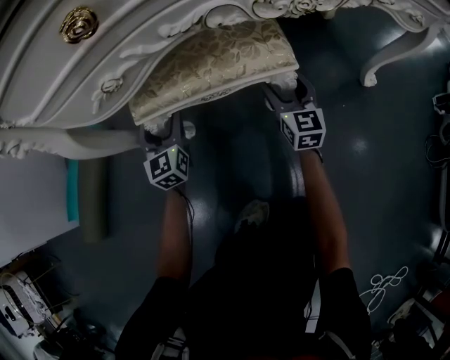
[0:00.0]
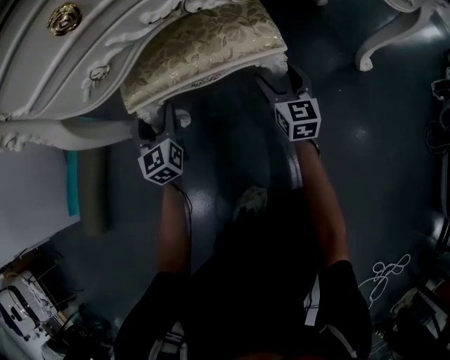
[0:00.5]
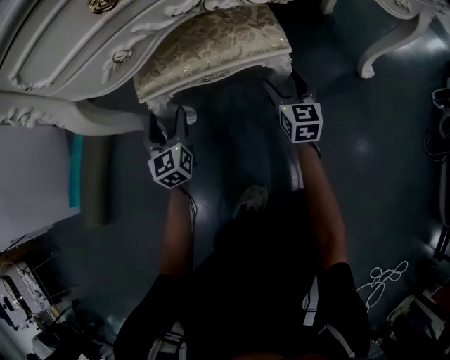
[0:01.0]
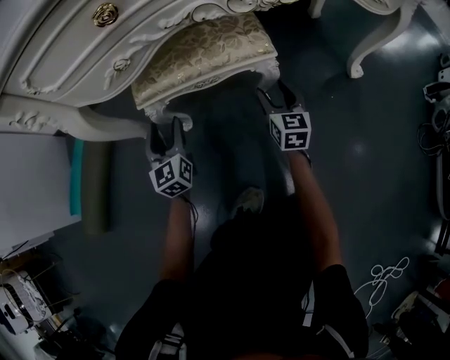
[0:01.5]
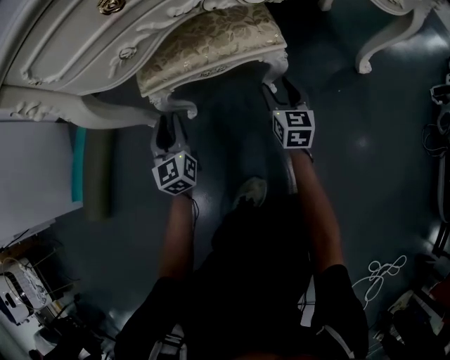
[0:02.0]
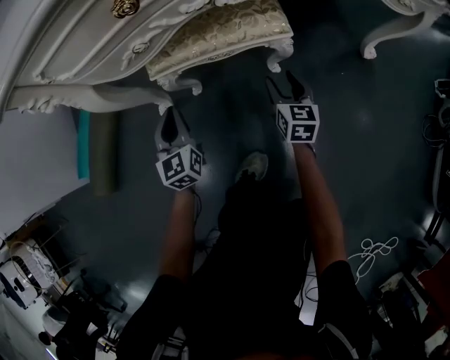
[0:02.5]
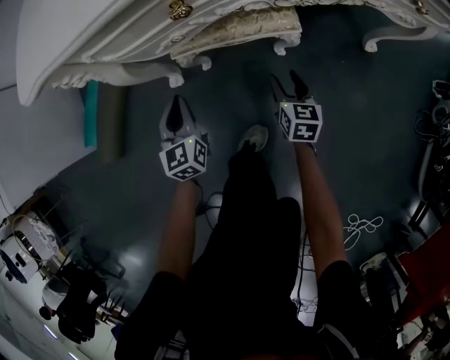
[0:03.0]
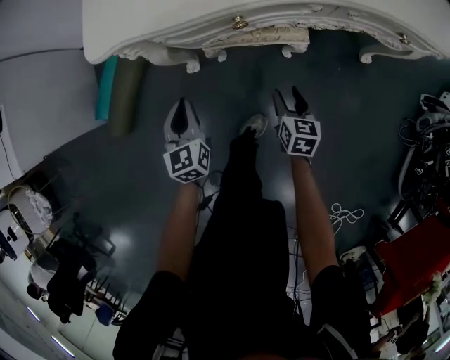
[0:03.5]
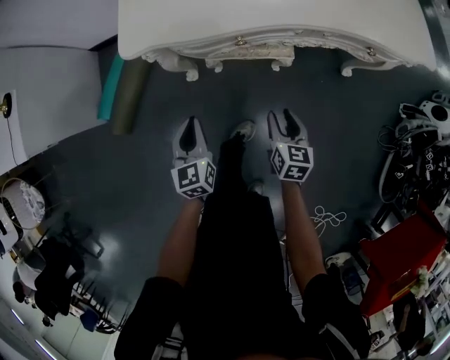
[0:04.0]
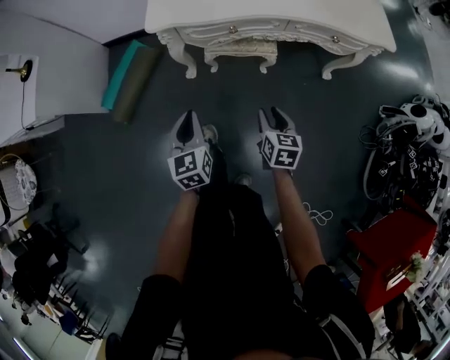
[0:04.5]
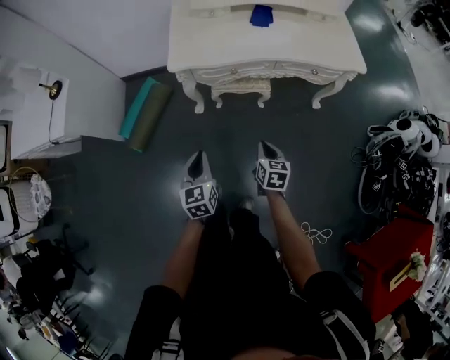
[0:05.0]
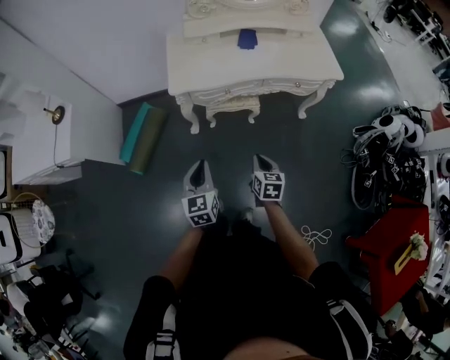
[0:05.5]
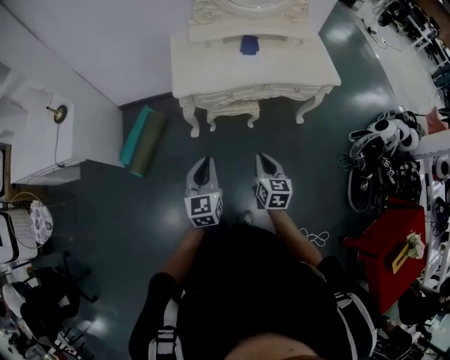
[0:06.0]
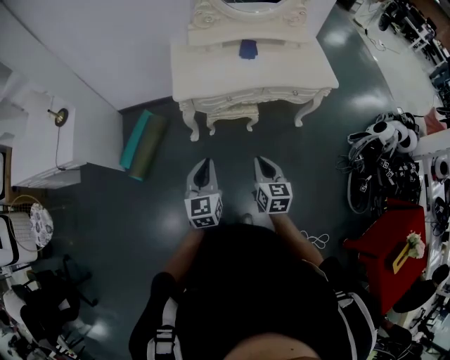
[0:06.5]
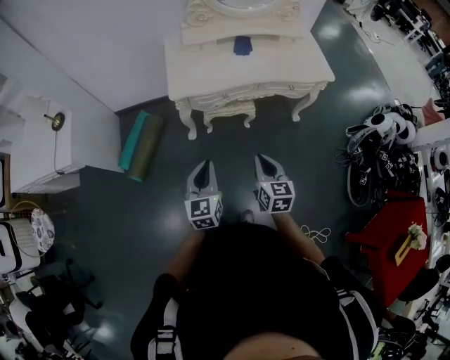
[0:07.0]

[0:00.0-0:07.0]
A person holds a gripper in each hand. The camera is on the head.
0:00.0 to 0:02.0: The two grippers go about 10 cm backward. The left gripper closes its fingers.
0:02.0 to 0:03.5: The left gripper travels upward and backward by about 25 cm; the right gripper is displaced upward, backward and to the left by approximately 25 cm, and rotates some 20 degrees.
0:03.5 to 0:05.0: The two grippers go about 40 cm upward and backward. The right gripper closes its fingers.
0:05.0 to 0:07.0: The two grippers go some 15 cm upward.

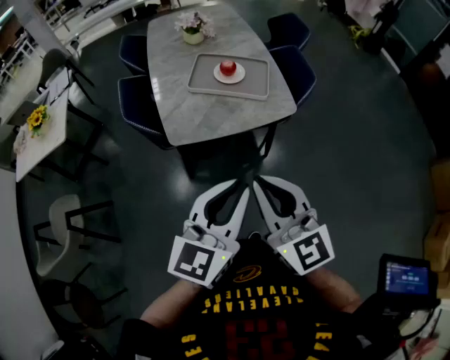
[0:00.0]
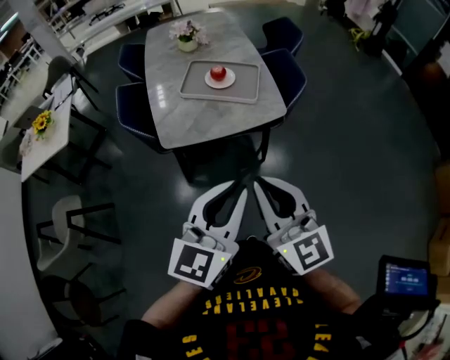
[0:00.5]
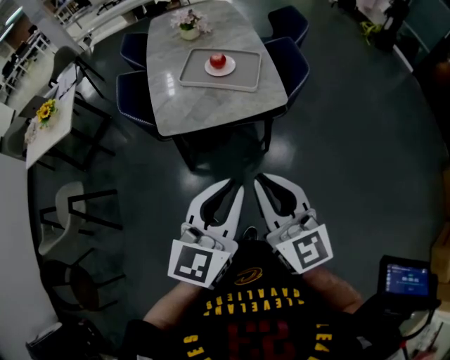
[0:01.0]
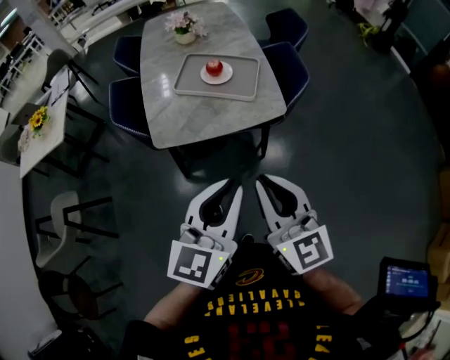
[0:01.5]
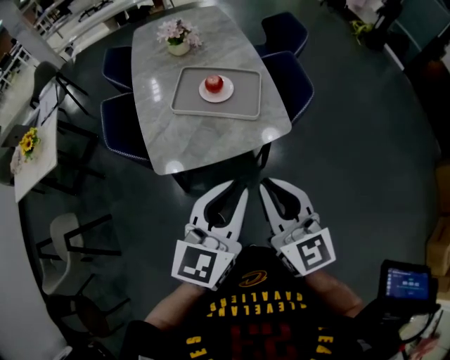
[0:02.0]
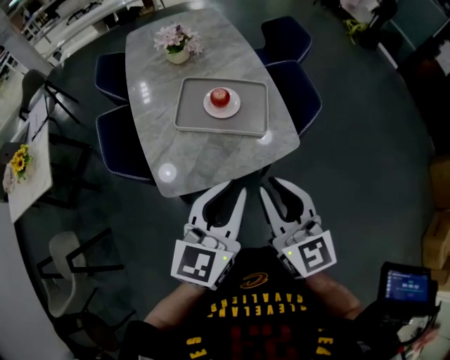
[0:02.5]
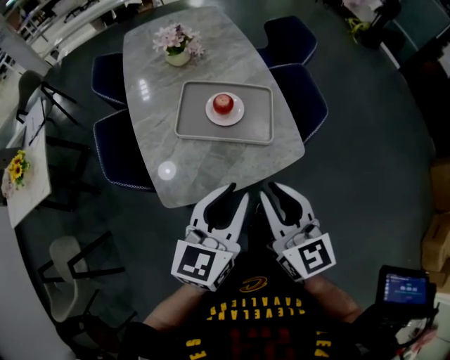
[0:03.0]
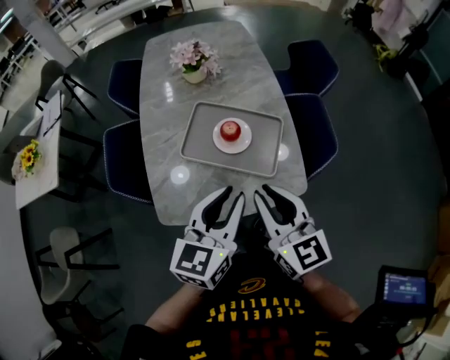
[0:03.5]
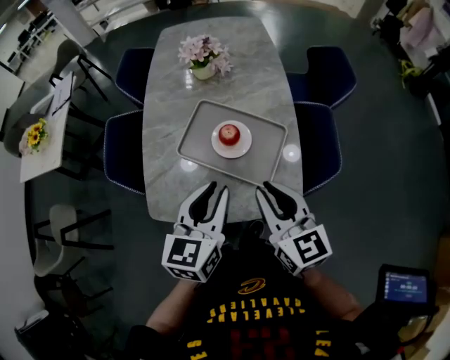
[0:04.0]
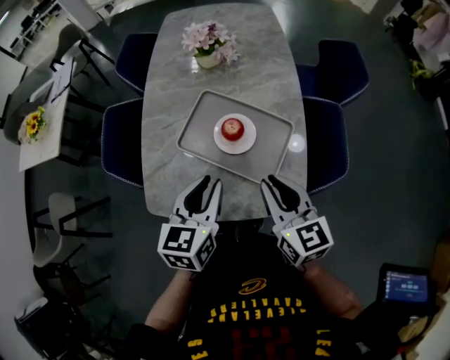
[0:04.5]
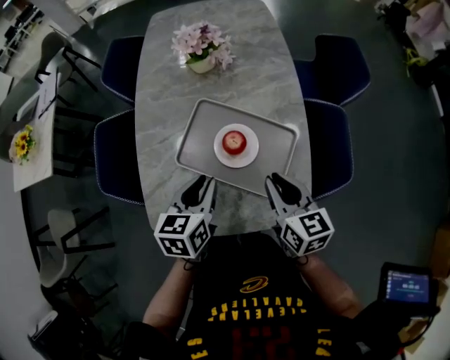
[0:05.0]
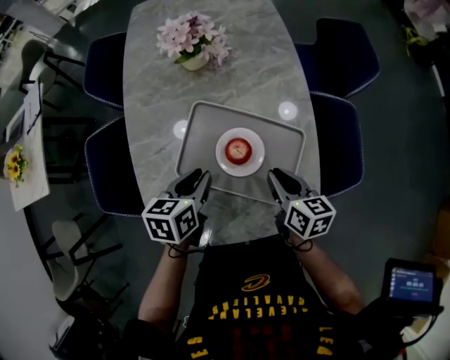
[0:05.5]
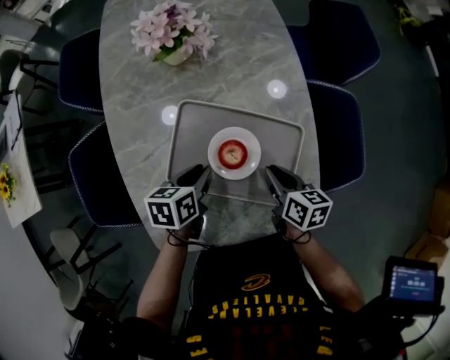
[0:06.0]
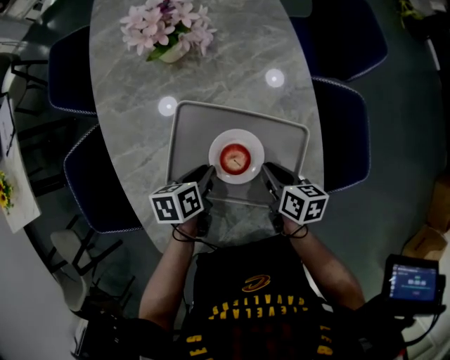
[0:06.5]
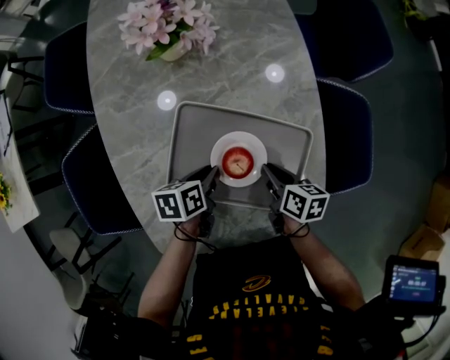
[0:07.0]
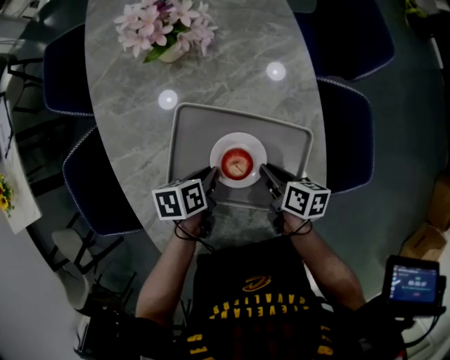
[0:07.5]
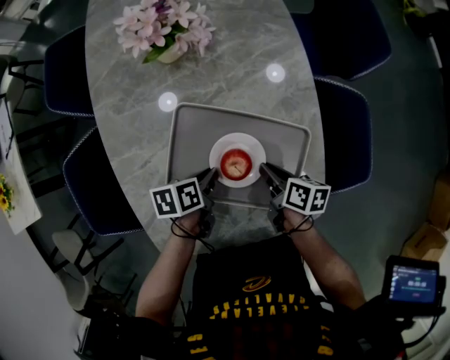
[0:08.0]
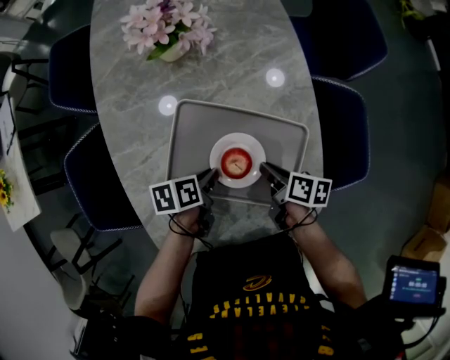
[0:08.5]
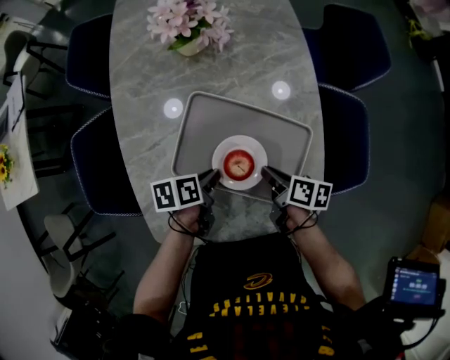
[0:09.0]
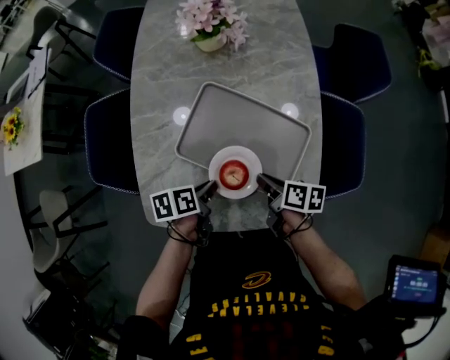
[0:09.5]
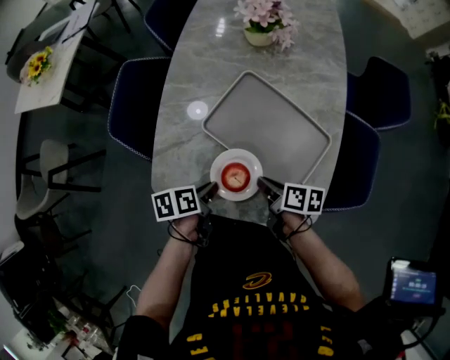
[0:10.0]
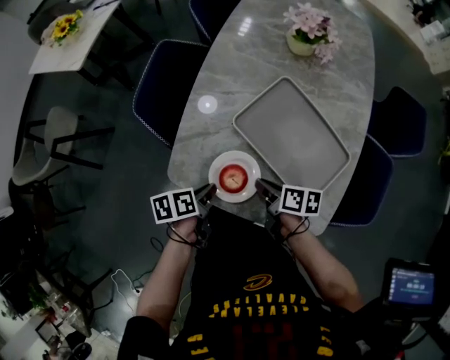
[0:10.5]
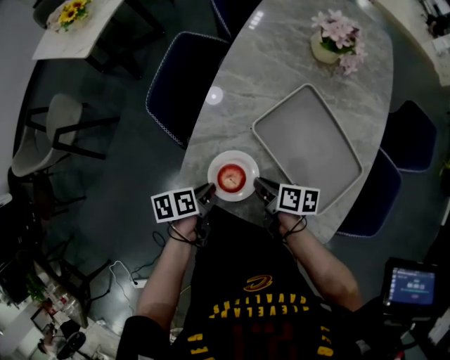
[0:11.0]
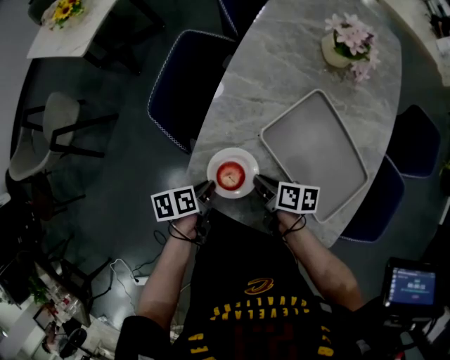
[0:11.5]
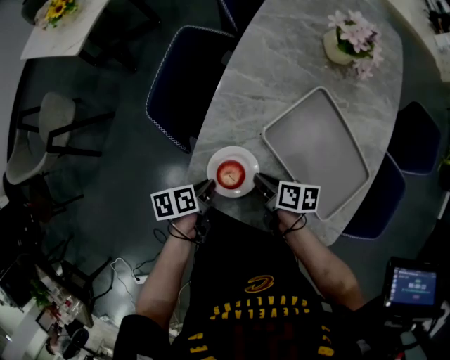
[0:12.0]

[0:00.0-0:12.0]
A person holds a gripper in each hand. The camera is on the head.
0:00.0 to 0:02.0: Both grippers travel together forward and to the right, some 15 cm.
0:02.0 to 0:04.0: The two grippers go roughly 30 cm forward. The left gripper turns by about 20 degrees.
0:04.0 to 0:06.0: Both grippers travel together downward and forward, roughly 30 cm. The left gripper points its fingers some 30 degrees further downward, while the right gripper turns by approximately 50 degrees.
0:06.0 to 0:08.0: Both grippers move downward, about 5 cm. The left gripper rotates roughly 20 degrees.
0:08.0 to 0:10.0: The left gripper shifts by approximately 20 cm, and turns by approximately 30 degrees. The right gripper shifts by approximately 15 cm, and rotates approximately 30 degrees.
0:10.0 to 0:12.0: The left gripper goes about 15 cm to the left and downward; the right gripper shifts roughly 20 cm to the left and forward.

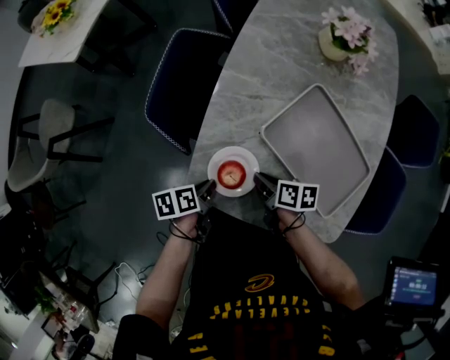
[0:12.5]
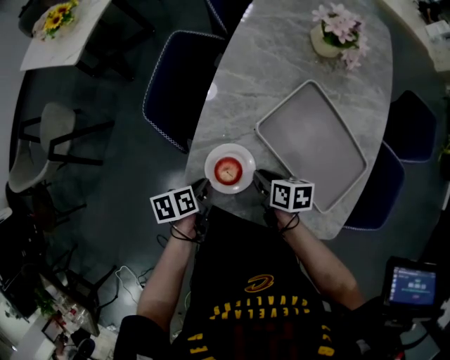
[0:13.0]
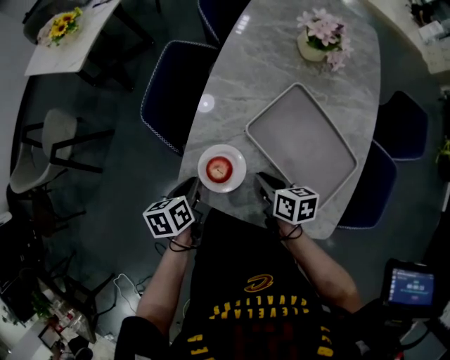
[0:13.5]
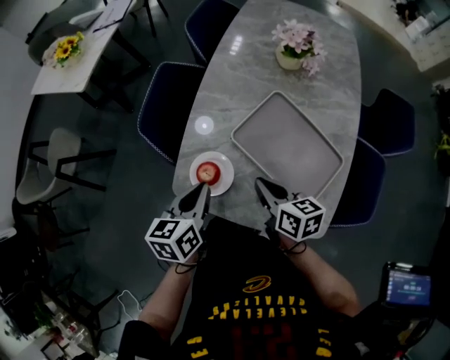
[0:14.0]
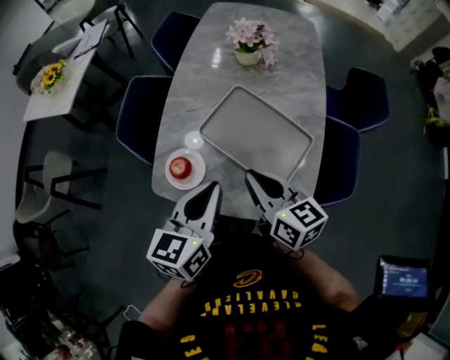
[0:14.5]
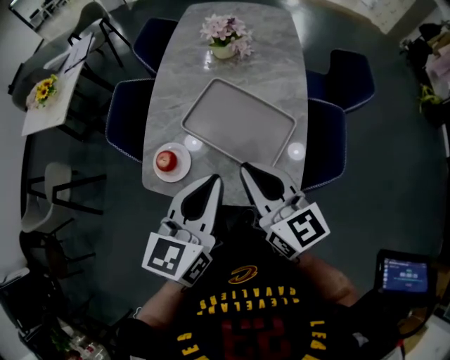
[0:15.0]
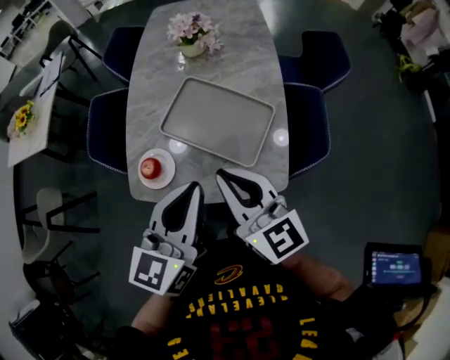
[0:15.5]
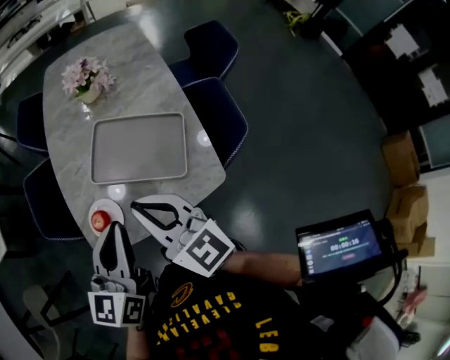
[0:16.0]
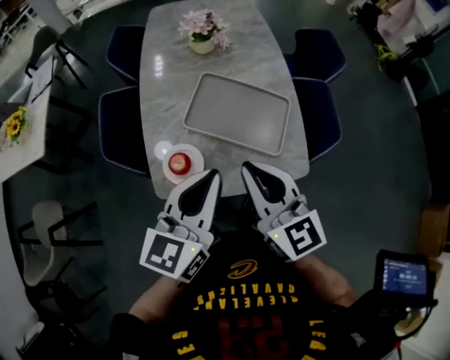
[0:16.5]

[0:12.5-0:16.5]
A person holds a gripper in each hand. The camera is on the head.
0:12.5 to 0:14.5: The right gripper is displaced upward by some 30 cm, and tilts its fingers roughly 30 degrees upward, while the left gripper goes about 35 cm upward and to the right, and angles its fingers upward, by about 30 degrees.
0:14.5 to 0:16.5: The right gripper shifts approximately 15 cm upward and backward, and swivels about 30 degrees; the left gripper moves upward, some 5 cm, reaches some 5 cm to the right, then returns, and changes its angle by approximately 30 degrees.

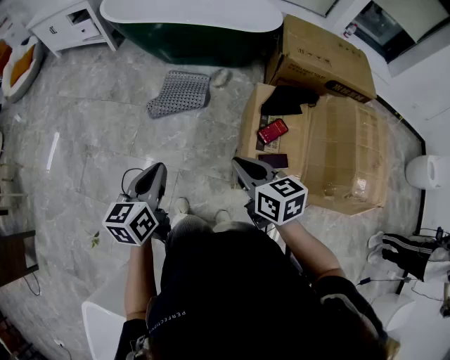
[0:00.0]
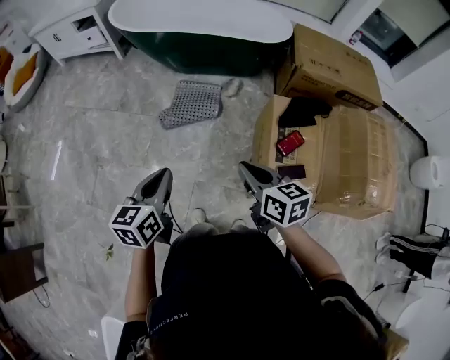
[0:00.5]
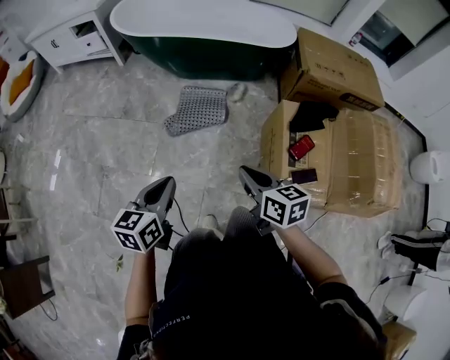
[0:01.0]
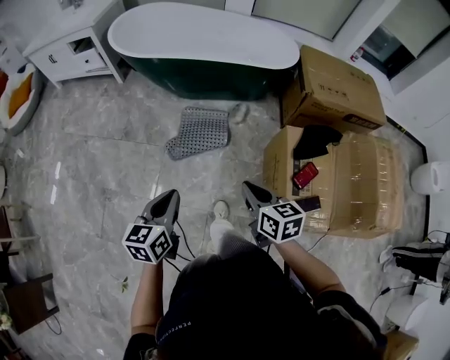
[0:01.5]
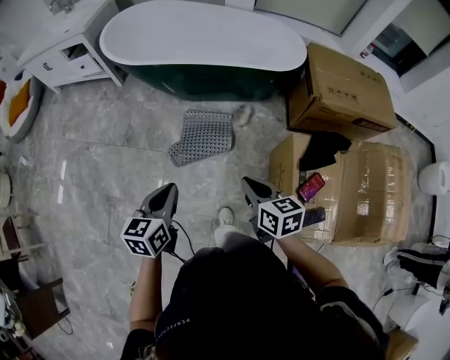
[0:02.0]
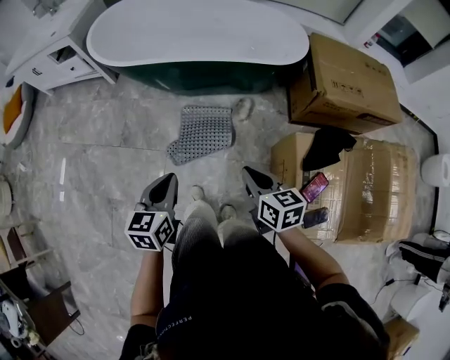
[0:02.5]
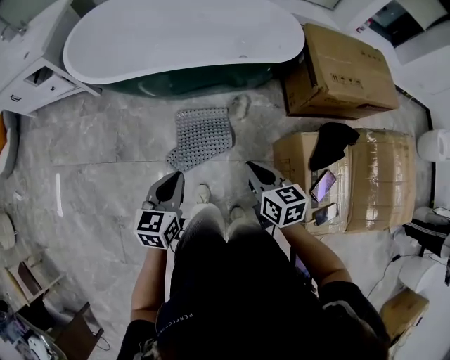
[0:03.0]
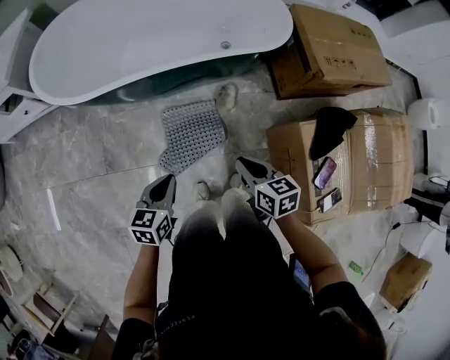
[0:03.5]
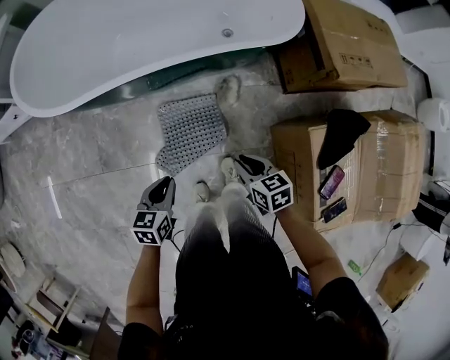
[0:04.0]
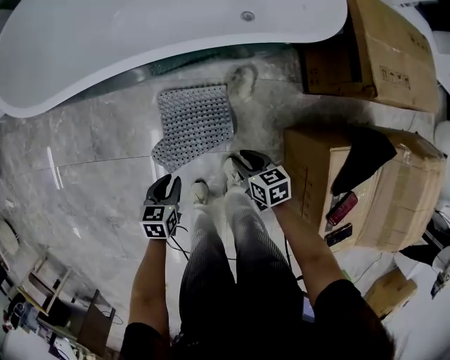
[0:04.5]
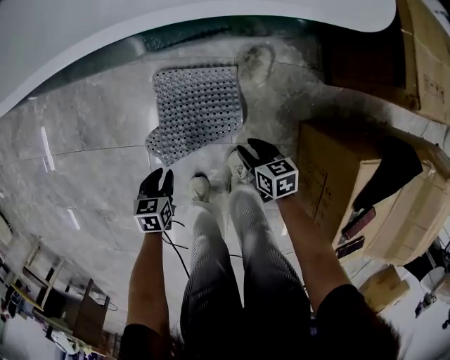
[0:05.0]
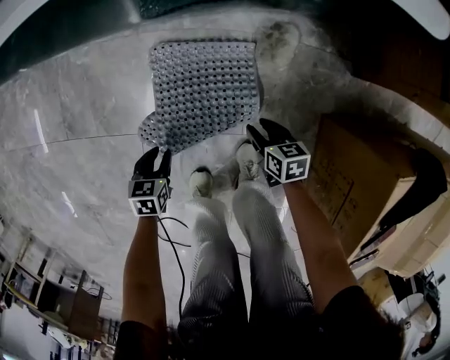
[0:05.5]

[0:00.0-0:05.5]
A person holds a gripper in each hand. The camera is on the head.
0:00.0 to 0:02.0: Both grippers travel together forward and to the left, some 30 cm.
0:02.0 to 0:03.5: Both grippers move forward and downward, approximately 25 cm. The left gripper turns by roughly 20 degrees.
0:03.5 to 0:05.5: The two grippers go about 50 cm downward. The right gripper turns by some 20 degrees, and opens its fingers, while the left gripper rotates some 30 degrees, and opens up.
